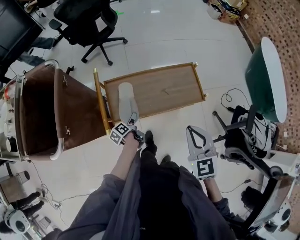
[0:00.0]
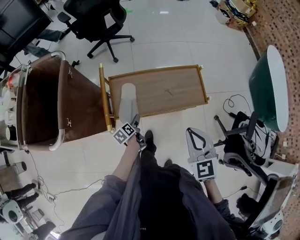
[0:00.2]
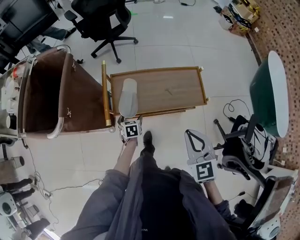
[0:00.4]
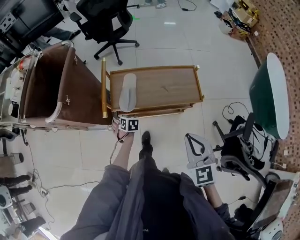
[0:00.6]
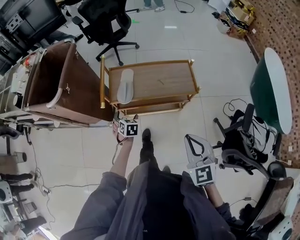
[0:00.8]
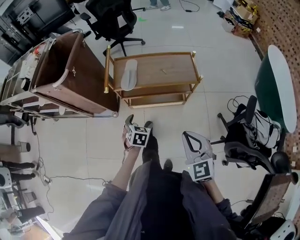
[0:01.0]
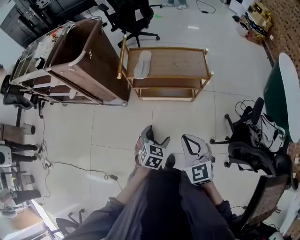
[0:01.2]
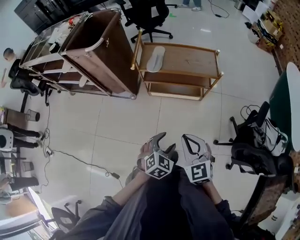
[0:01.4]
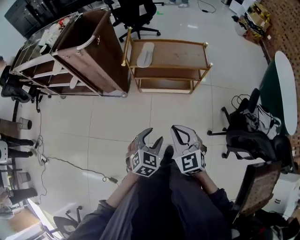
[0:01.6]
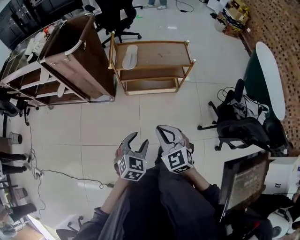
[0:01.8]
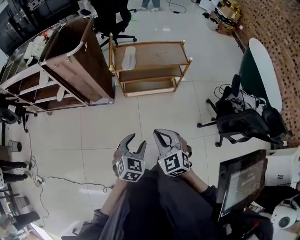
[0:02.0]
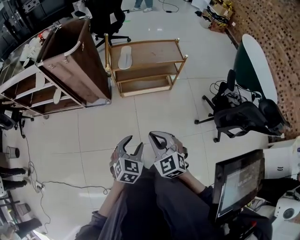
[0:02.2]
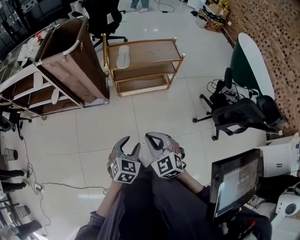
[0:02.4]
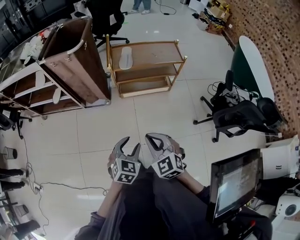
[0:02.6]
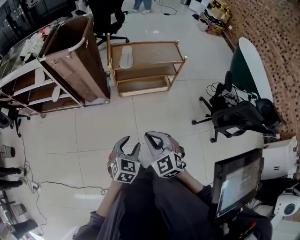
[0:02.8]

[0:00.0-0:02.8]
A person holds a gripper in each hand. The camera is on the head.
0:00.0 to 0:01.4: The two grippers go approximately 40 cm backward. The right gripper rotates about 20 degrees, while the left gripper rolls clockwise, seen from behind, by approximately 90 degrees.
0:01.4 to 0:02.8: Both grippers travel together to the left and backward, some 25 cm.

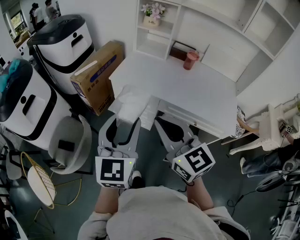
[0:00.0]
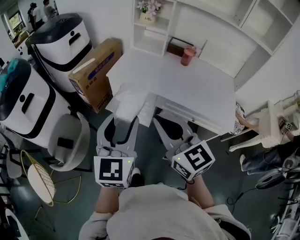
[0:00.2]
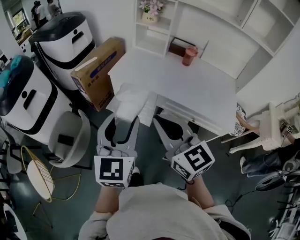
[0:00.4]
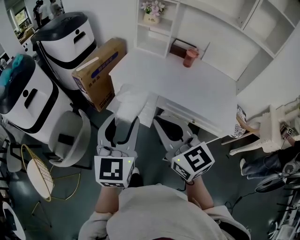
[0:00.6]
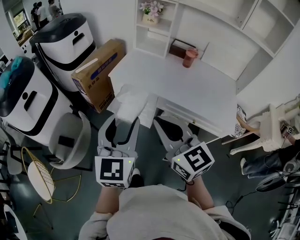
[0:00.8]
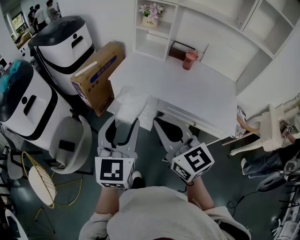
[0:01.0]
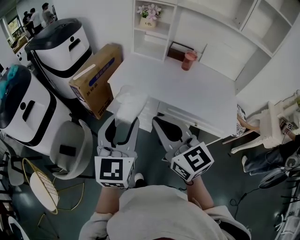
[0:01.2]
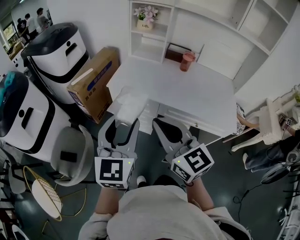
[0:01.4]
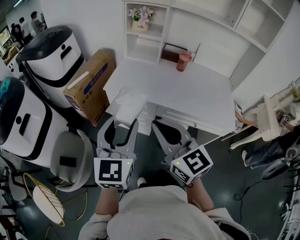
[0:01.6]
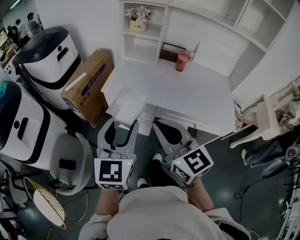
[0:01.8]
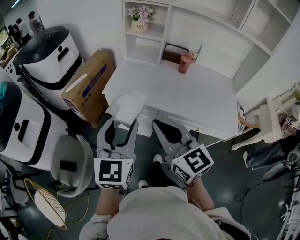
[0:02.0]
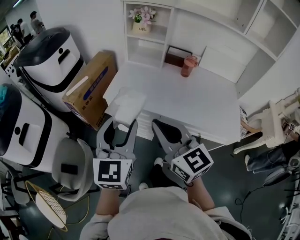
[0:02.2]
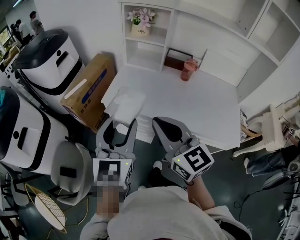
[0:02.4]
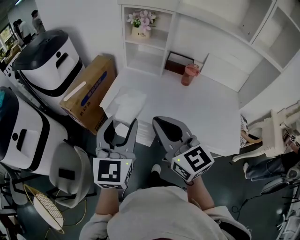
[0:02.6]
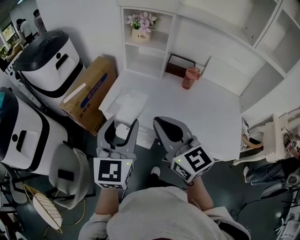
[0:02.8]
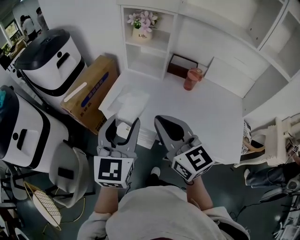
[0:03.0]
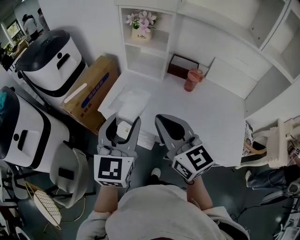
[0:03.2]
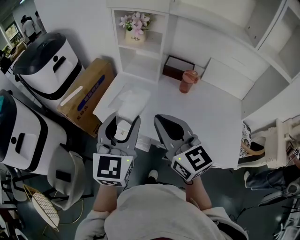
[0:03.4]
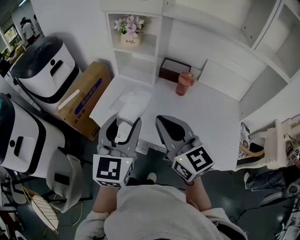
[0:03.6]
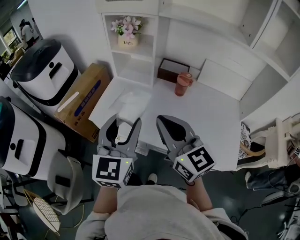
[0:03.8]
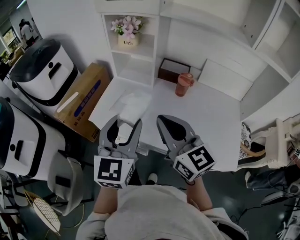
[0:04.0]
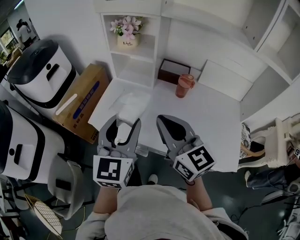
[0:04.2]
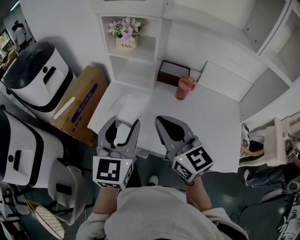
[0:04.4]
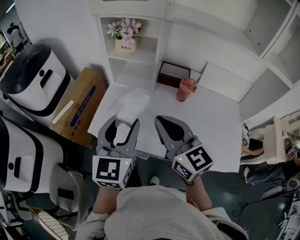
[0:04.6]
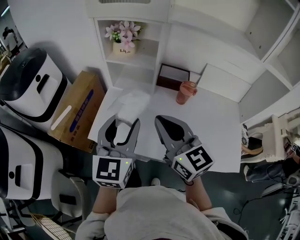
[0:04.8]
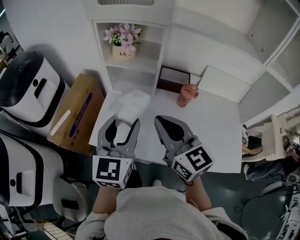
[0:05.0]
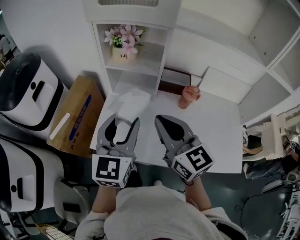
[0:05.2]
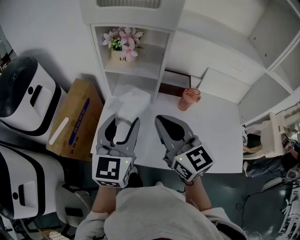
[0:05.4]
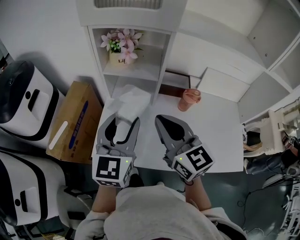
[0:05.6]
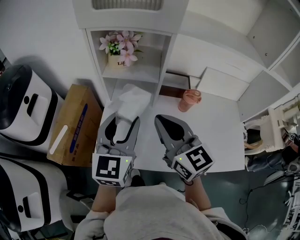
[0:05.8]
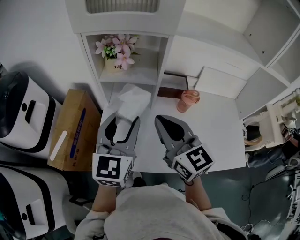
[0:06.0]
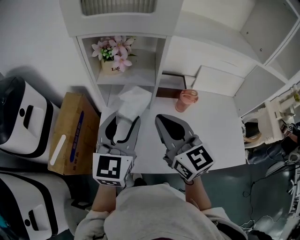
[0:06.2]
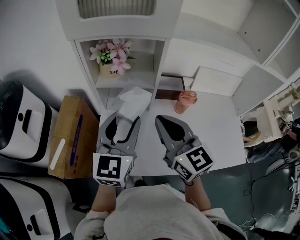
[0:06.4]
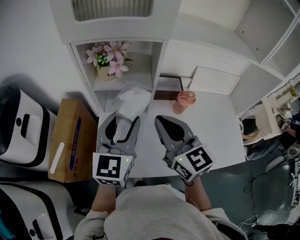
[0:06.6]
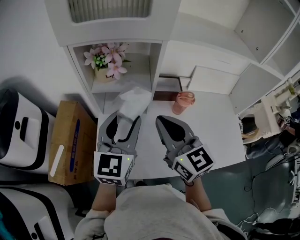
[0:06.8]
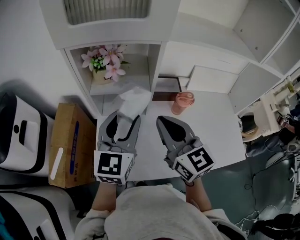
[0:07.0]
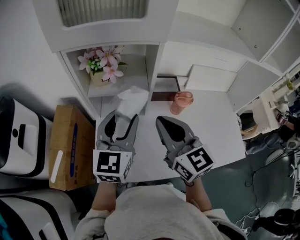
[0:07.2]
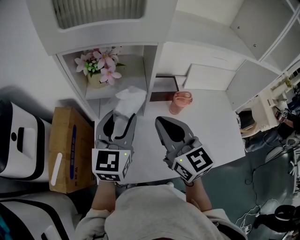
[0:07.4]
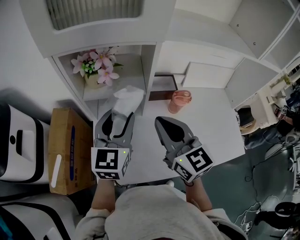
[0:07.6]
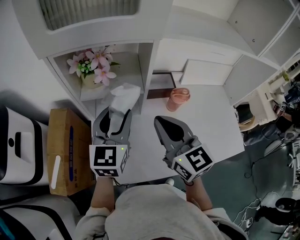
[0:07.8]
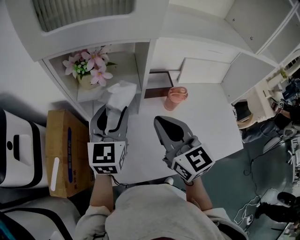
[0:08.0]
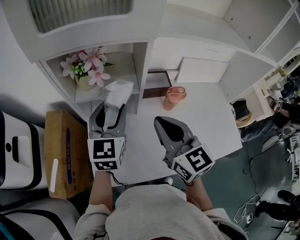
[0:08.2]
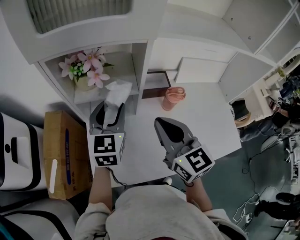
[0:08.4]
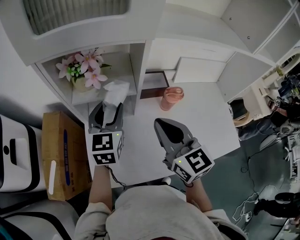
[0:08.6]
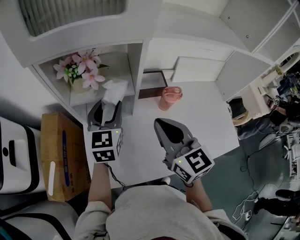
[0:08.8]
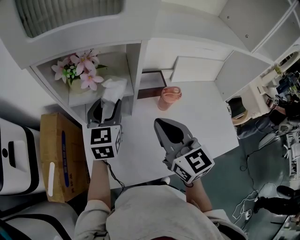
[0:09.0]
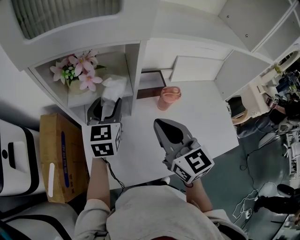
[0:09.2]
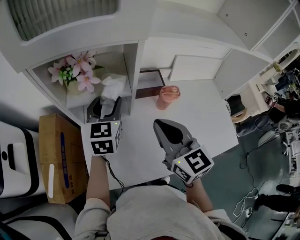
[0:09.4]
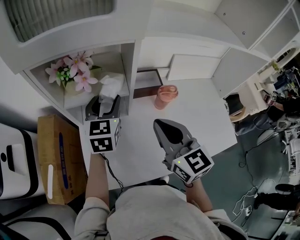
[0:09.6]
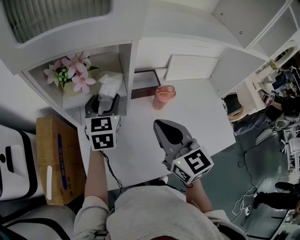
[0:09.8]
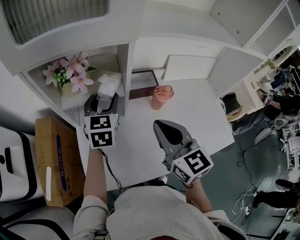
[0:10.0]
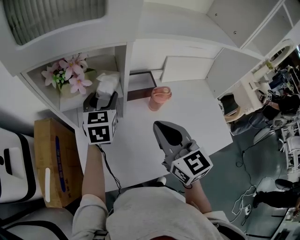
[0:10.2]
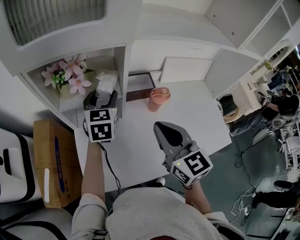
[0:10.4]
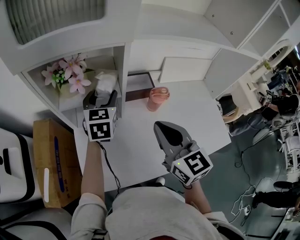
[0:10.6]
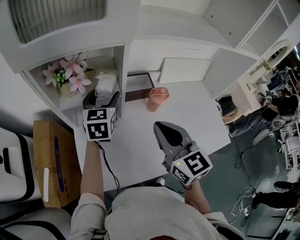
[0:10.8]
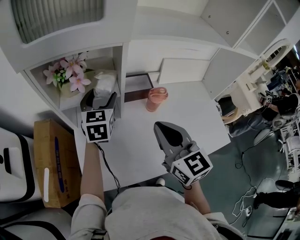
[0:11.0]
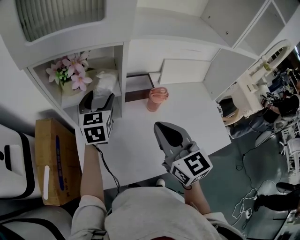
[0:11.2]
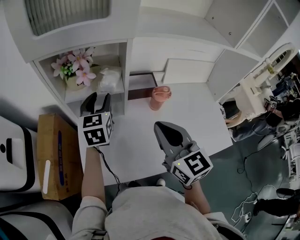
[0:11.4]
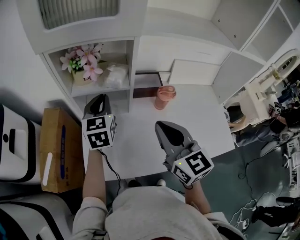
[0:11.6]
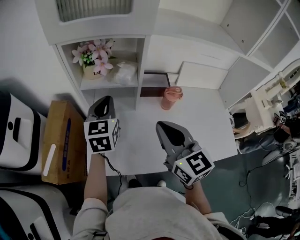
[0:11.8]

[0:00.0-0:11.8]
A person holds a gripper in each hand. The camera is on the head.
0:00.0 to 0:01.4: There are only small adjustments of the grippers.
0:01.4 to 0:03.0: Both grippers travel together forward and to the right, about 25 cm.
0:03.0 to 0:04.4: The two grippers go approximately 10 cm forward and to the right.
0:04.4 to 0:06.0: Both grippers move forward, some 20 cm.
0:06.0 to 0:07.4: The left gripper goes some 10 cm forward. Meanwhile the right gripper shifts some 5 cm forward.
0:07.4 to 0:08.8: The left gripper goes some 10 cm forward and downward.
0:08.8 to 0:10.4: The left gripper goes some 5 cm forward.
0:10.4 to 0:11.8: The left gripper goes approximately 10 cm backward and to the left, and closes. Meanwhile the right gripper is displaced backward by approximately 5 cm.

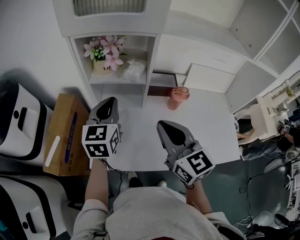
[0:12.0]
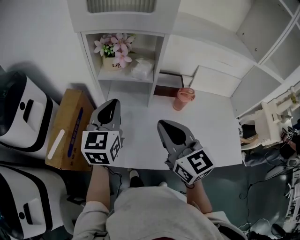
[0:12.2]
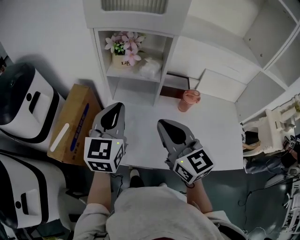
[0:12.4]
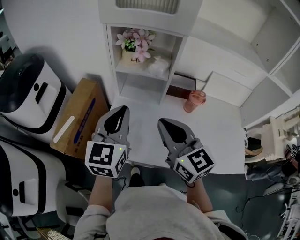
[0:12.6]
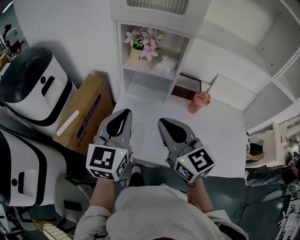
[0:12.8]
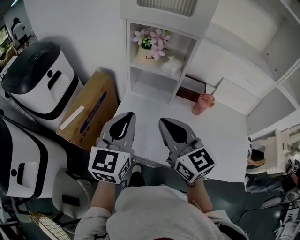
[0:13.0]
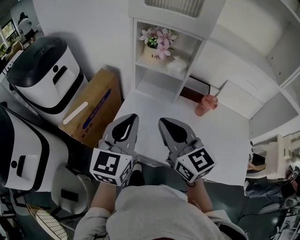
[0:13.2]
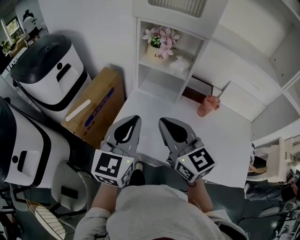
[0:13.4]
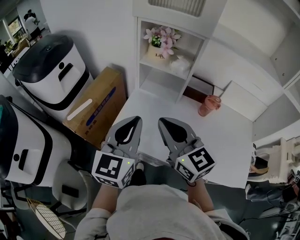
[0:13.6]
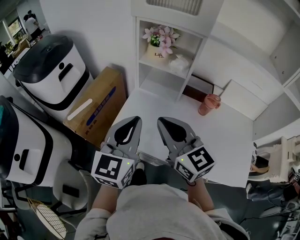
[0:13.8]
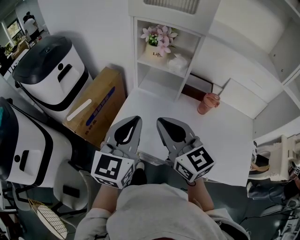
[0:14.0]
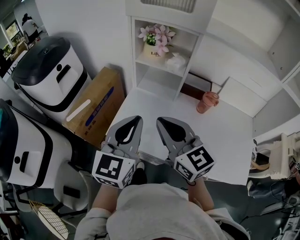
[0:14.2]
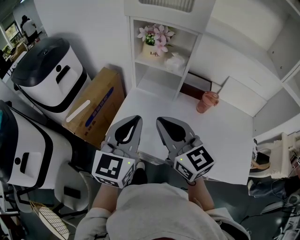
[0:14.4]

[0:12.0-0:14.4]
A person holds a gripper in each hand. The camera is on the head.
0:12.0 to 0:13.2: The right gripper shifts approximately 10 cm to the left and backward, and swivels approximately 20 degrees. The left gripper travels backward by about 20 cm.
0:13.2 to 0:14.4: There are only small adjustments of the grippers.

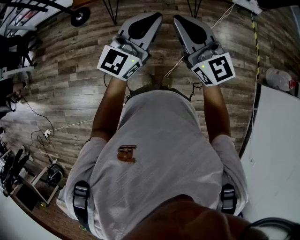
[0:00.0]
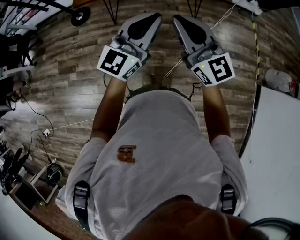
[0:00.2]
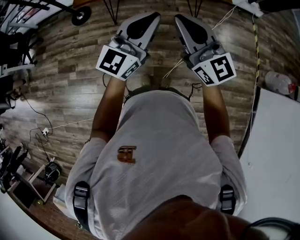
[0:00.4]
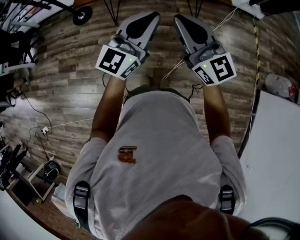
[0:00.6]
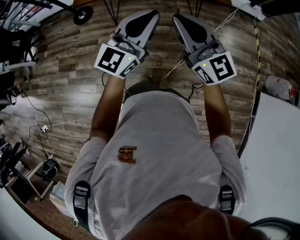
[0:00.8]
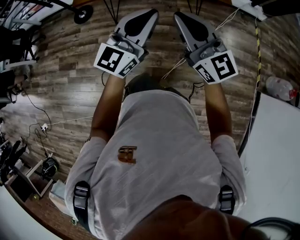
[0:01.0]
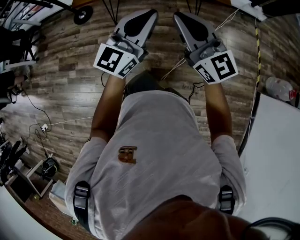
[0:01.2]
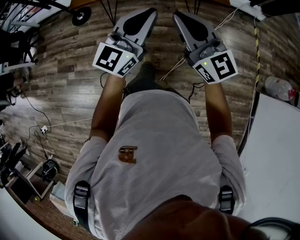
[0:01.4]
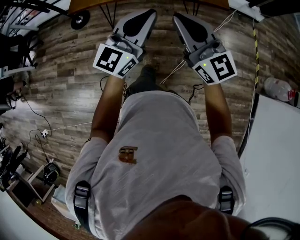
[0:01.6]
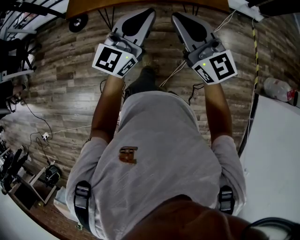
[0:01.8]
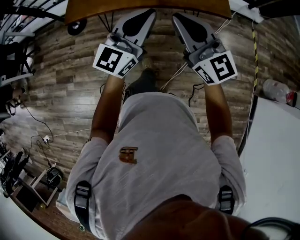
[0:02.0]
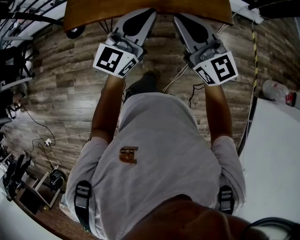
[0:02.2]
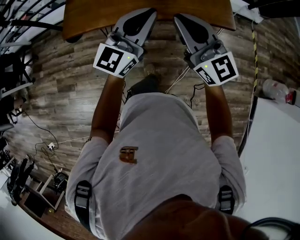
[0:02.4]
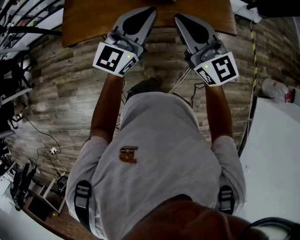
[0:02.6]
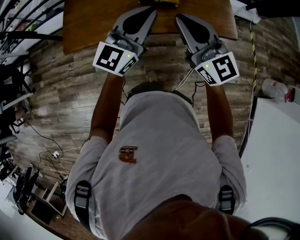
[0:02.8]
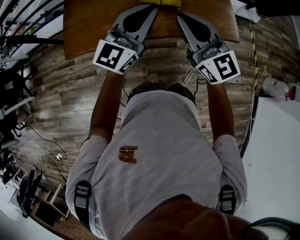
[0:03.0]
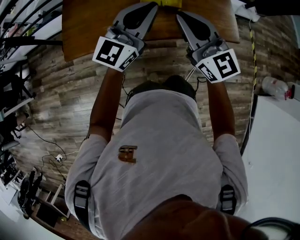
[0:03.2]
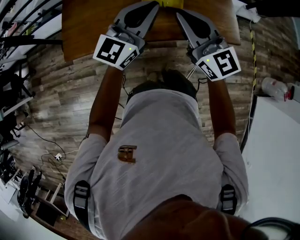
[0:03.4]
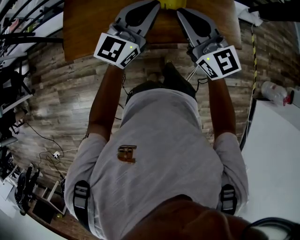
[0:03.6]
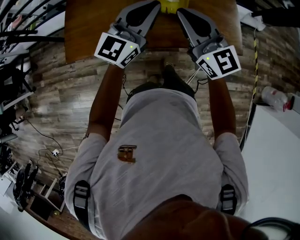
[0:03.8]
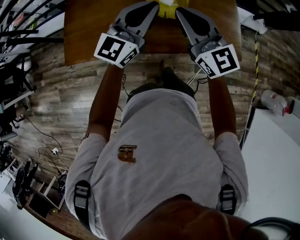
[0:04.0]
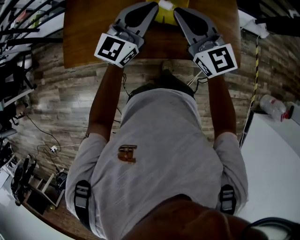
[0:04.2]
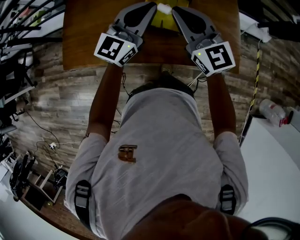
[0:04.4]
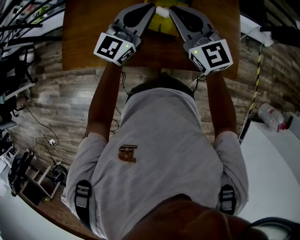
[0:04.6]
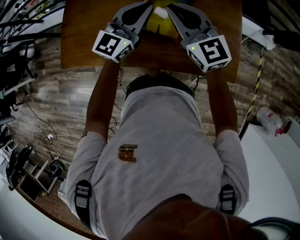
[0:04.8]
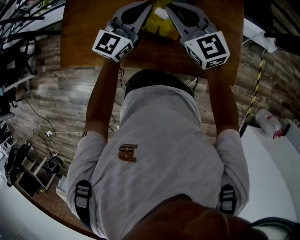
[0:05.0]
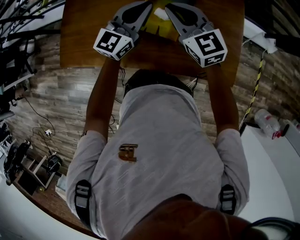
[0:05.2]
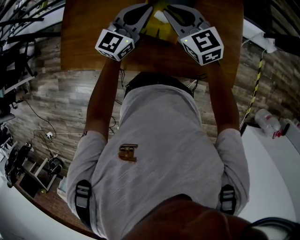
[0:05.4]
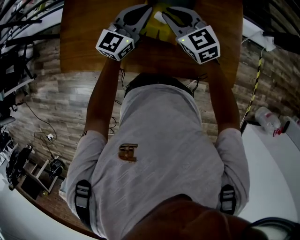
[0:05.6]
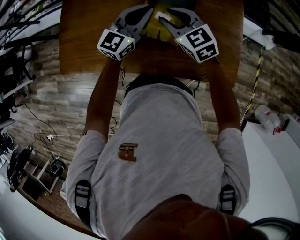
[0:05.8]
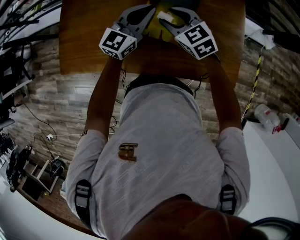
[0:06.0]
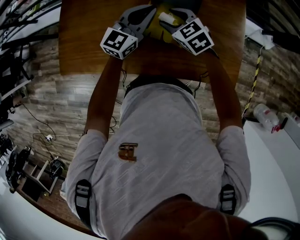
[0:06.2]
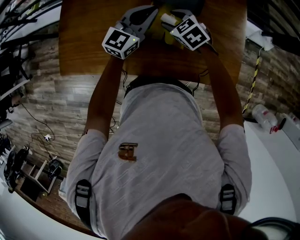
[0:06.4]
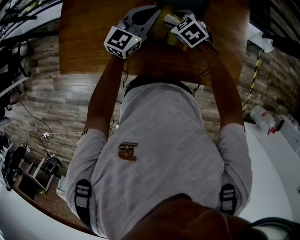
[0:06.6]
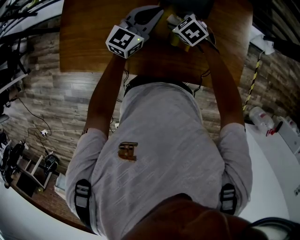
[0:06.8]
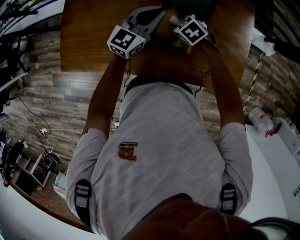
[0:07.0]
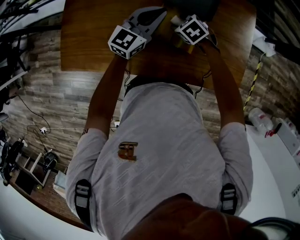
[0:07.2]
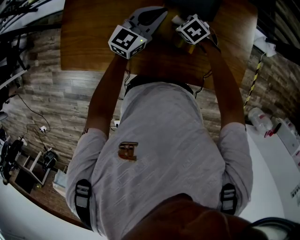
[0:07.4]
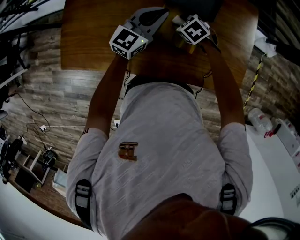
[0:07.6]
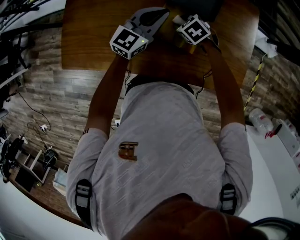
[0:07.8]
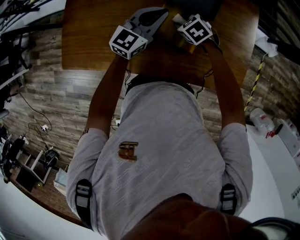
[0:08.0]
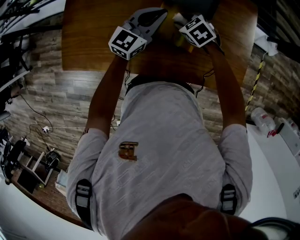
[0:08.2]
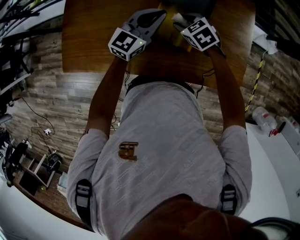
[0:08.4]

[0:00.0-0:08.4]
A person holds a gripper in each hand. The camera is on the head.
0:00.0 to 0:01.4: The grippers both shift to the right by approximately 10 cm.
0:01.4 to 0:02.8: The two grippers travel together, forward, approximately 50 cm.
0:02.8 to 0:04.2: The two grippers go approximately 25 cm forward.
0:04.2 to 0:05.6: Both grippers move forward and downward, approximately 20 cm. The right gripper changes its angle by about 20 degrees.
0:05.6 to 0:07.0: The left gripper heads to the left, downward and forward, covering about 10 cm. The right gripper goes some 20 cm downward, angles its fingers downward, by some 40 degrees, and opens up.
0:07.0 to 0:08.4: The grippers stay close to where they were, moving slightly.